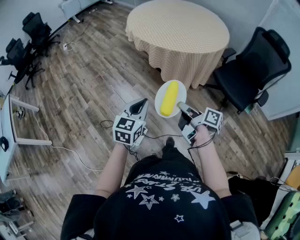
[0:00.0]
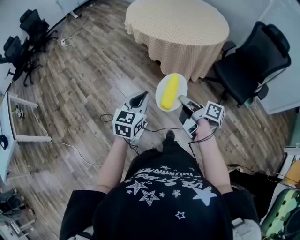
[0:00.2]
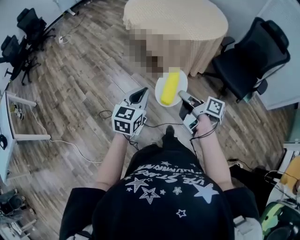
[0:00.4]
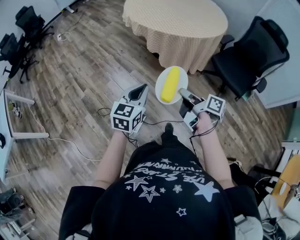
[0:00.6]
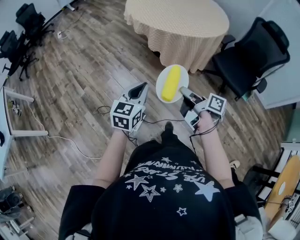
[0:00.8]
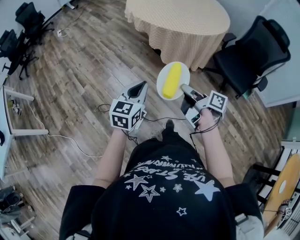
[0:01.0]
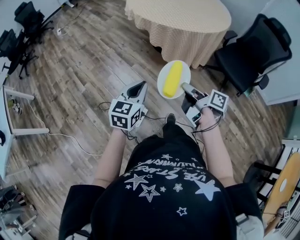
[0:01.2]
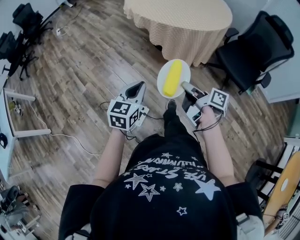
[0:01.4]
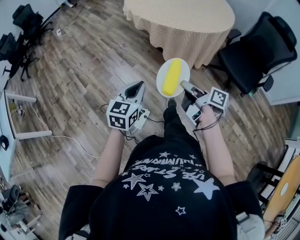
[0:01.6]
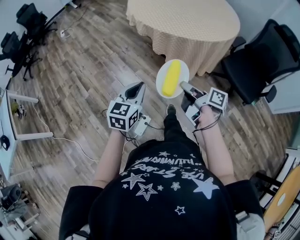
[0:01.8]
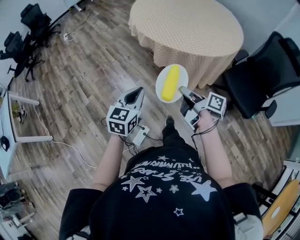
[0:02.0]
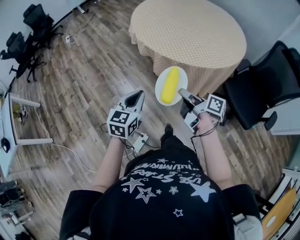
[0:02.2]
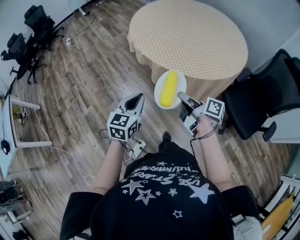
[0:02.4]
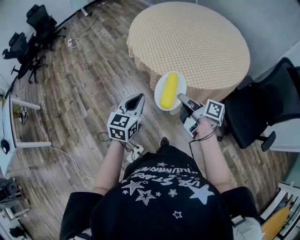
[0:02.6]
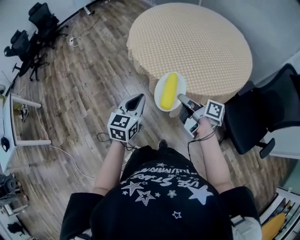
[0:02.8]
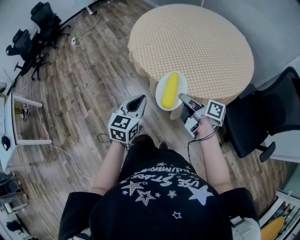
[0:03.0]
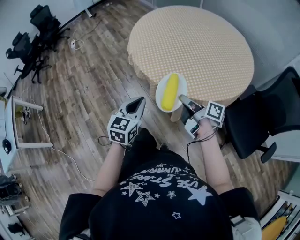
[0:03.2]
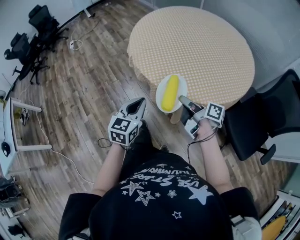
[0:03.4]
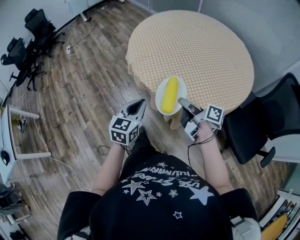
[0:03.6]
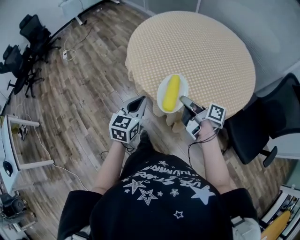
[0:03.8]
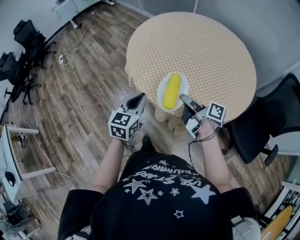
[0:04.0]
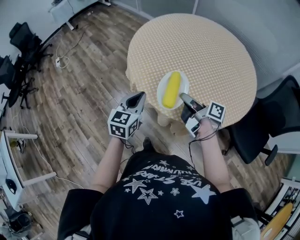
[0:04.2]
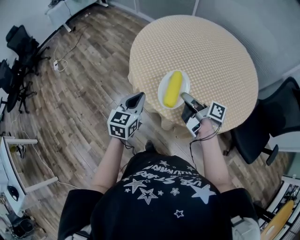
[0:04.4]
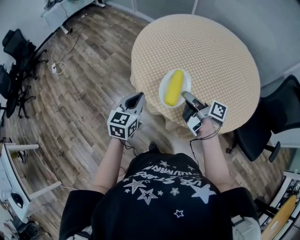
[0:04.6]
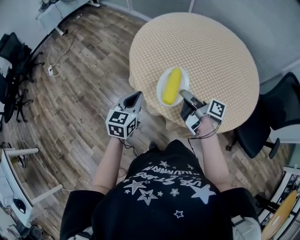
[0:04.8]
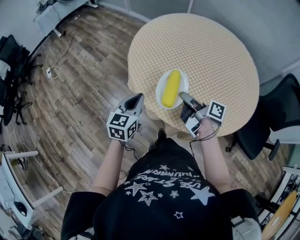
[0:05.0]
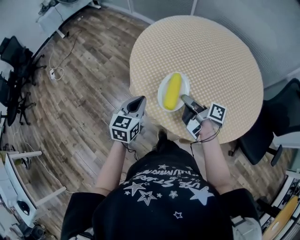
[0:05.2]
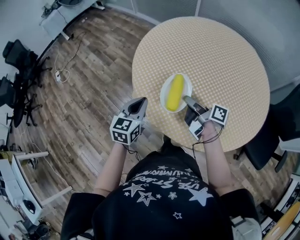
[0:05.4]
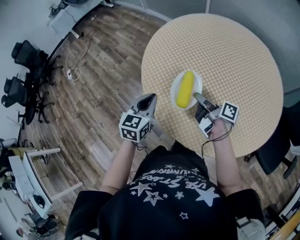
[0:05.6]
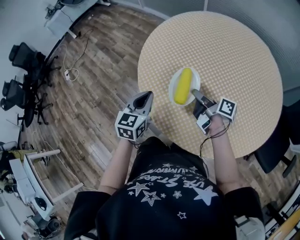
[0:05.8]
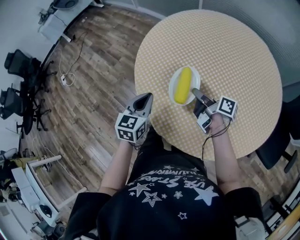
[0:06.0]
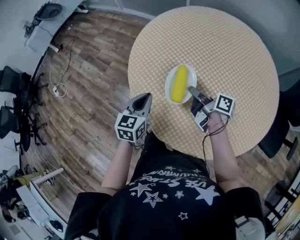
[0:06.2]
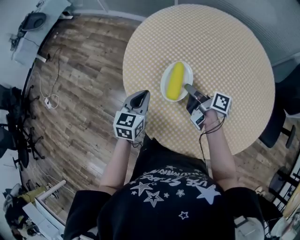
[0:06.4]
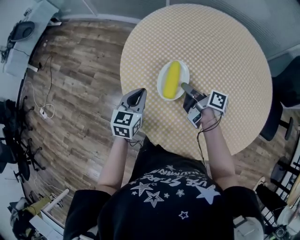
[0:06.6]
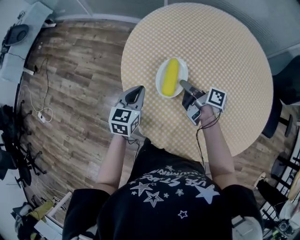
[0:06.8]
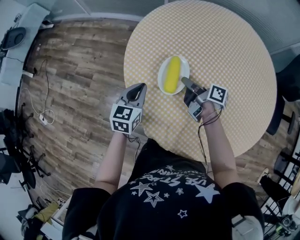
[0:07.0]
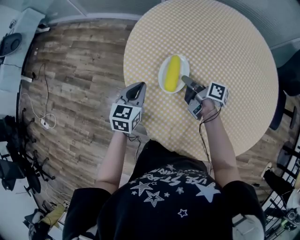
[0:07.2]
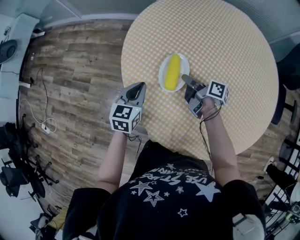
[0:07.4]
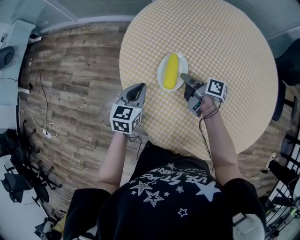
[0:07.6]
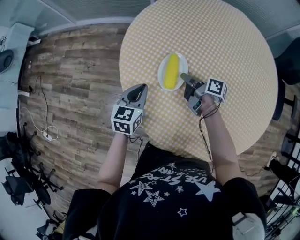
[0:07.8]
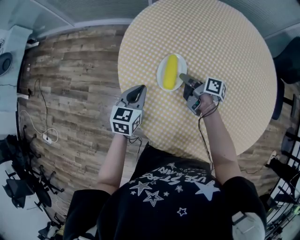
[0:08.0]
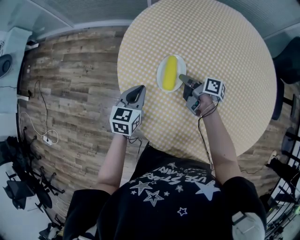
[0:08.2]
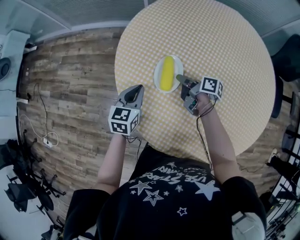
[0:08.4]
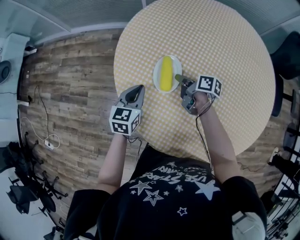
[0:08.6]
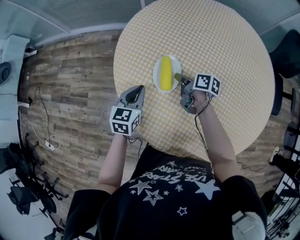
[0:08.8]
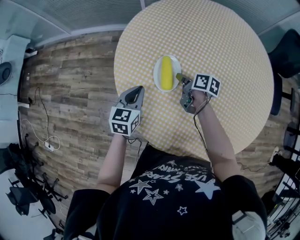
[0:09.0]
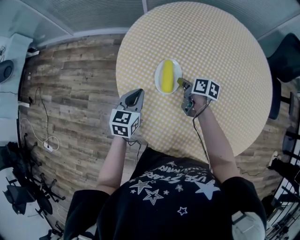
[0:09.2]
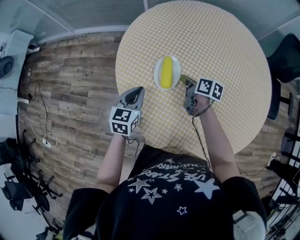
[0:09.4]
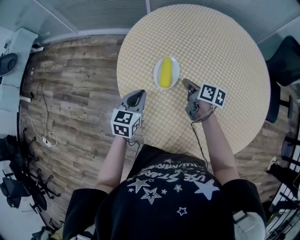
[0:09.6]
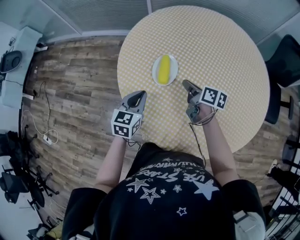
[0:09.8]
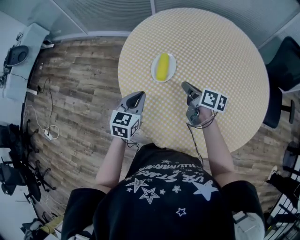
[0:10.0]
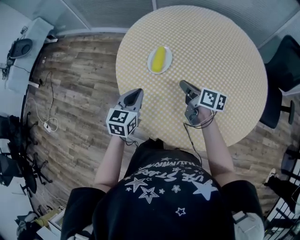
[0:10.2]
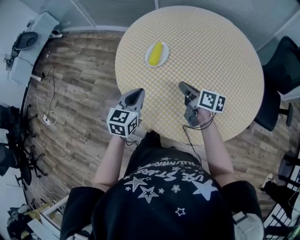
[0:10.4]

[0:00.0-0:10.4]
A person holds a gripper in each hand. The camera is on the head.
0:01.4 to 0:03.0: The left gripper changes place by about 35 cm.
0:03.0 to 0:04.4: The left gripper changes place by some 30 cm.
0:04.4 to 0:06.0: The left gripper changes place by about 20 cm.
0:06.0 to 0:07.4: The left gripper ends up about 25 cm from where it was, and changes its angle by about 30 degrees.
0:09.0 to 0:10.4: The left gripper changes place by some 25 cm.

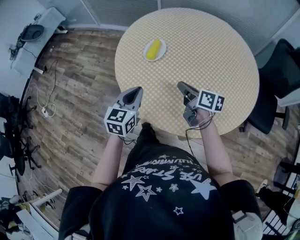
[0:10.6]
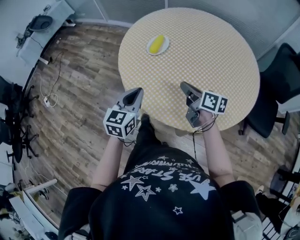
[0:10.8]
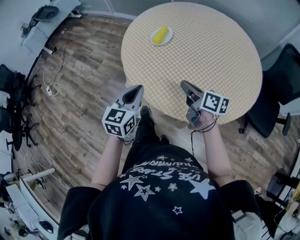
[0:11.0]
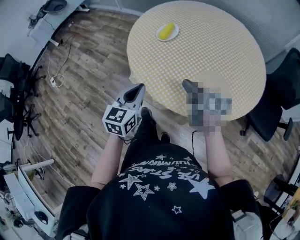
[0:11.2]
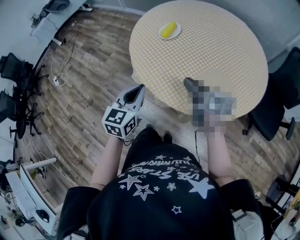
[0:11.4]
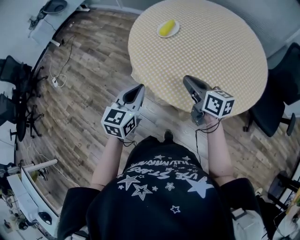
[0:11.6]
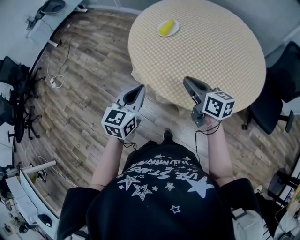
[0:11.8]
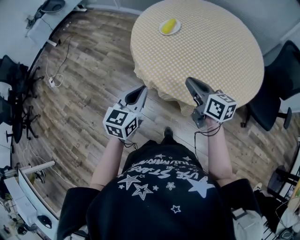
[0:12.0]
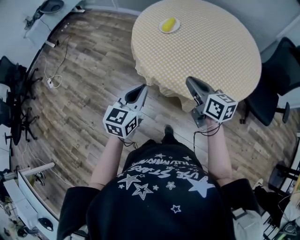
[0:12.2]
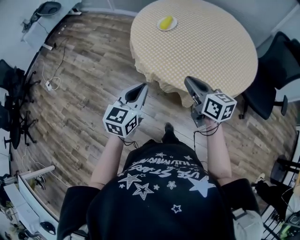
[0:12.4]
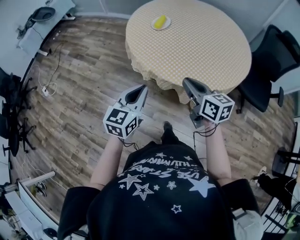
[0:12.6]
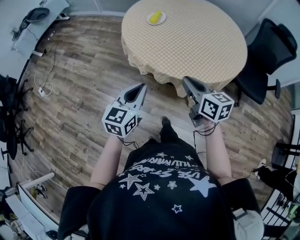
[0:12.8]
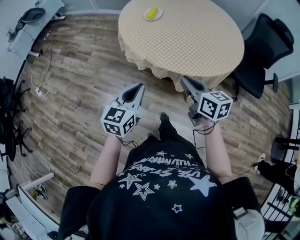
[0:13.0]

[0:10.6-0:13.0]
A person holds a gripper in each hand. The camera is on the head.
0:10.6 to 0:11.8: The left gripper changes place by about 20 cm.
0:11.8 to 0:13.0: The left gripper changes place by roughly 15 cm.

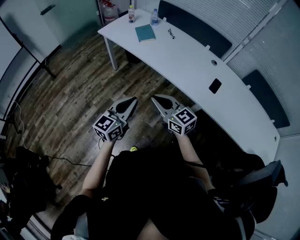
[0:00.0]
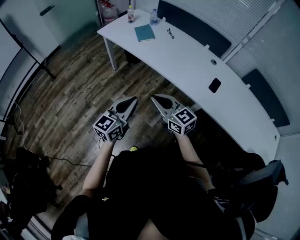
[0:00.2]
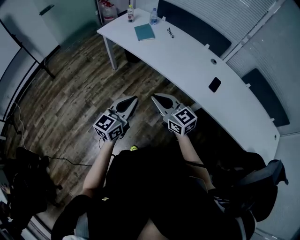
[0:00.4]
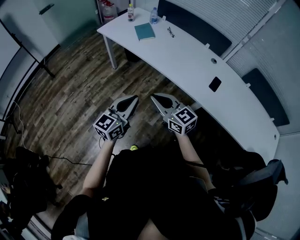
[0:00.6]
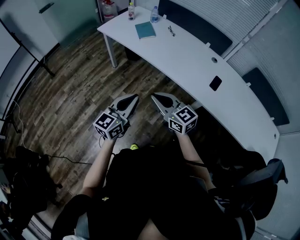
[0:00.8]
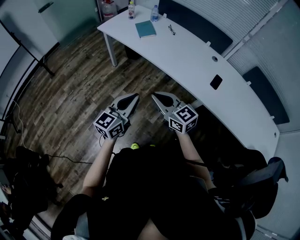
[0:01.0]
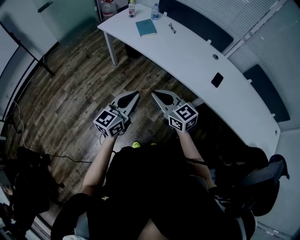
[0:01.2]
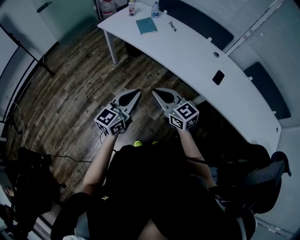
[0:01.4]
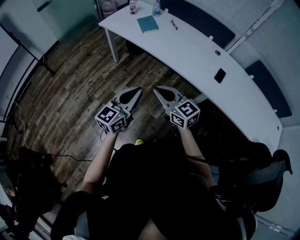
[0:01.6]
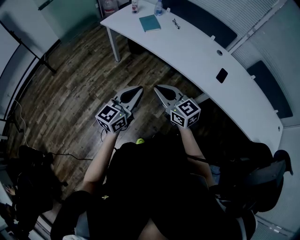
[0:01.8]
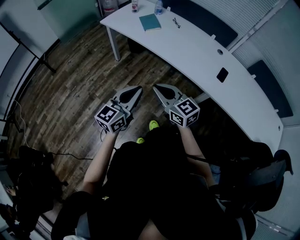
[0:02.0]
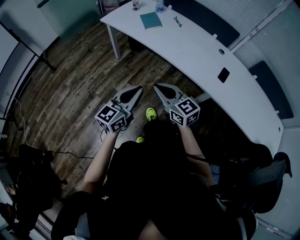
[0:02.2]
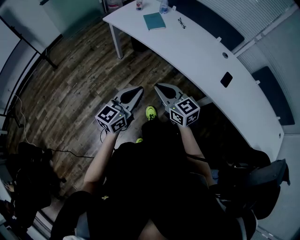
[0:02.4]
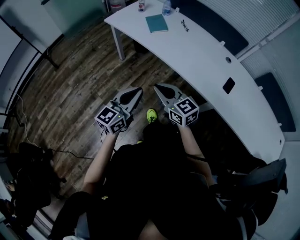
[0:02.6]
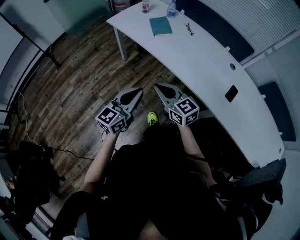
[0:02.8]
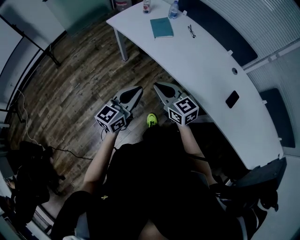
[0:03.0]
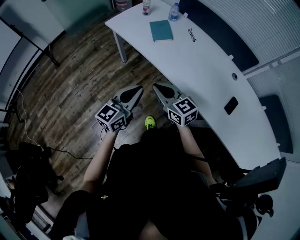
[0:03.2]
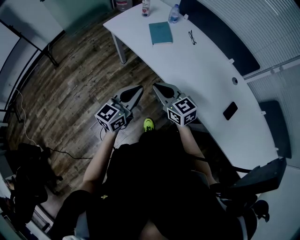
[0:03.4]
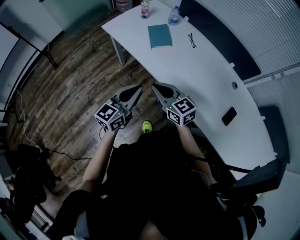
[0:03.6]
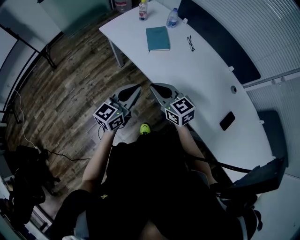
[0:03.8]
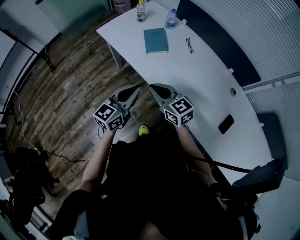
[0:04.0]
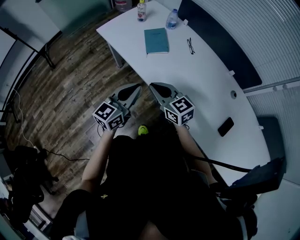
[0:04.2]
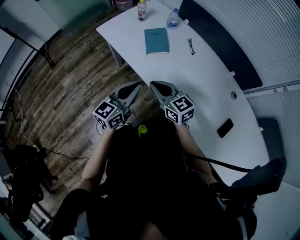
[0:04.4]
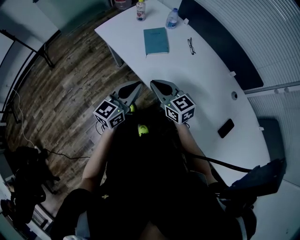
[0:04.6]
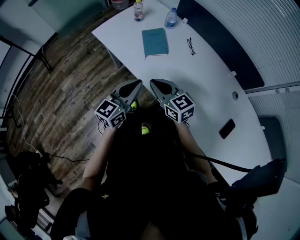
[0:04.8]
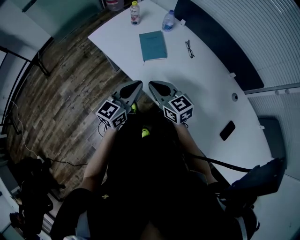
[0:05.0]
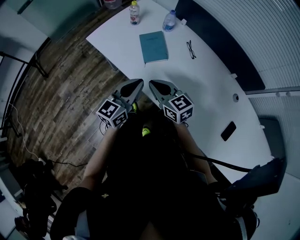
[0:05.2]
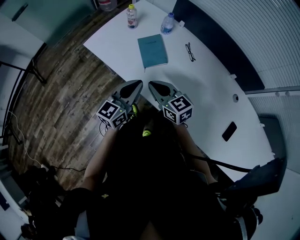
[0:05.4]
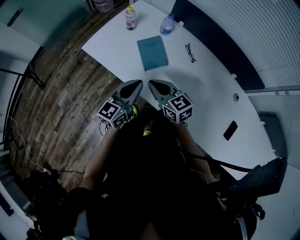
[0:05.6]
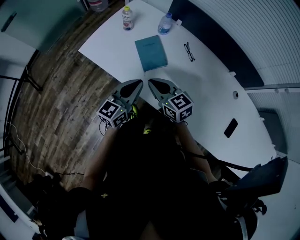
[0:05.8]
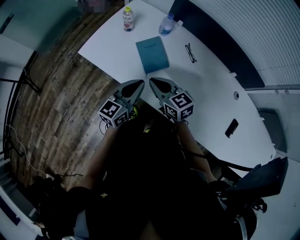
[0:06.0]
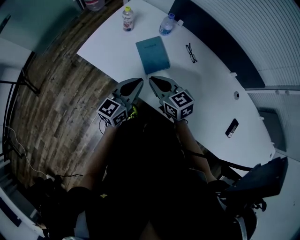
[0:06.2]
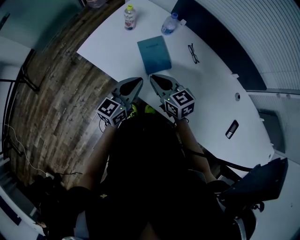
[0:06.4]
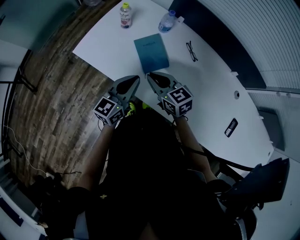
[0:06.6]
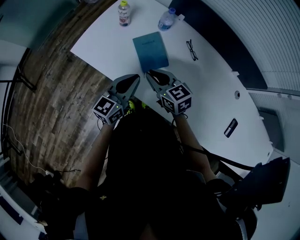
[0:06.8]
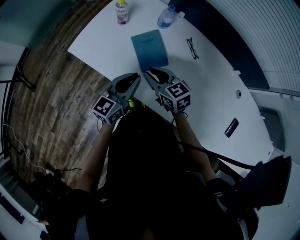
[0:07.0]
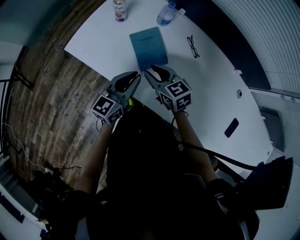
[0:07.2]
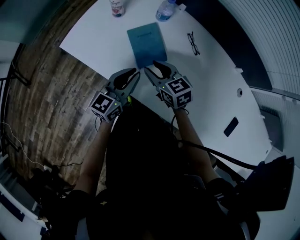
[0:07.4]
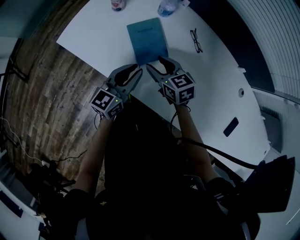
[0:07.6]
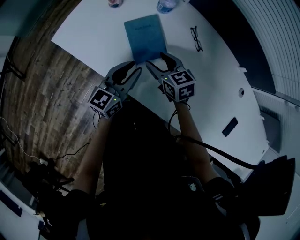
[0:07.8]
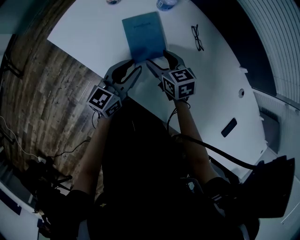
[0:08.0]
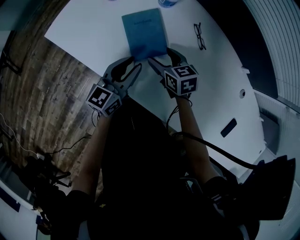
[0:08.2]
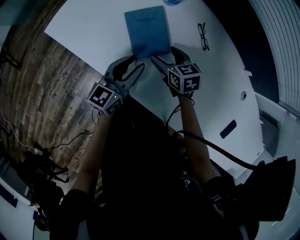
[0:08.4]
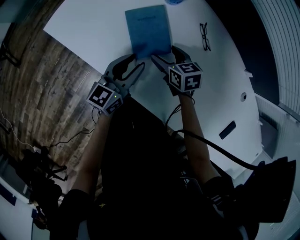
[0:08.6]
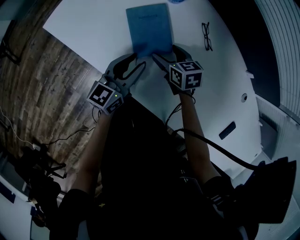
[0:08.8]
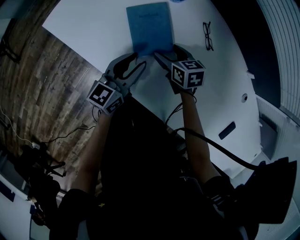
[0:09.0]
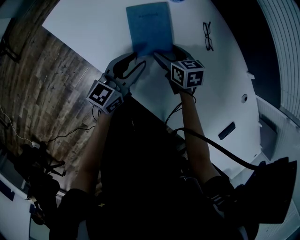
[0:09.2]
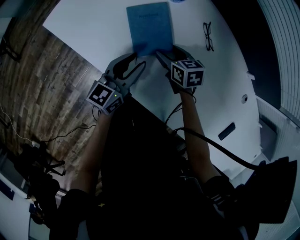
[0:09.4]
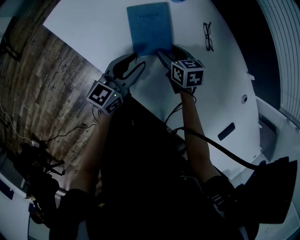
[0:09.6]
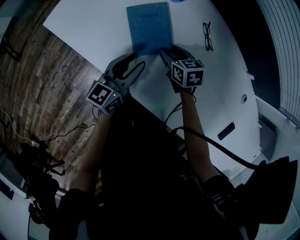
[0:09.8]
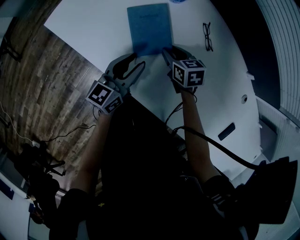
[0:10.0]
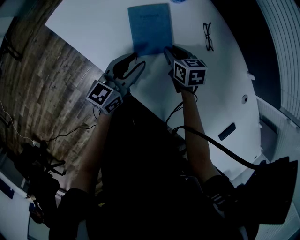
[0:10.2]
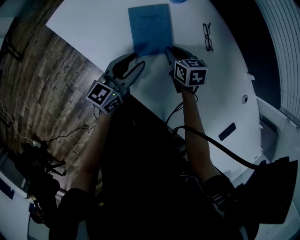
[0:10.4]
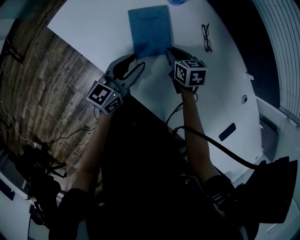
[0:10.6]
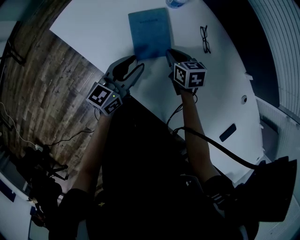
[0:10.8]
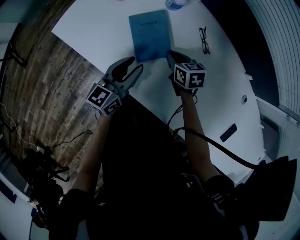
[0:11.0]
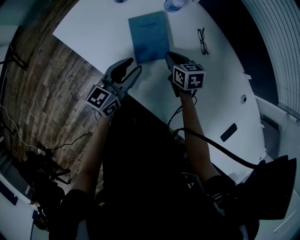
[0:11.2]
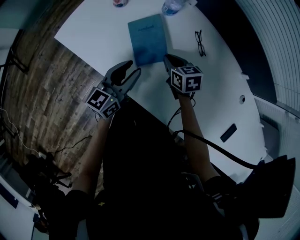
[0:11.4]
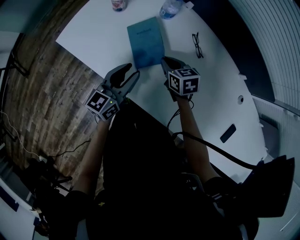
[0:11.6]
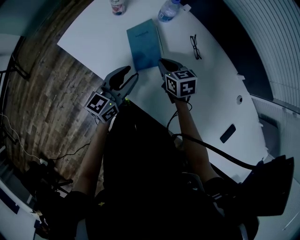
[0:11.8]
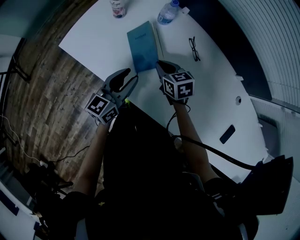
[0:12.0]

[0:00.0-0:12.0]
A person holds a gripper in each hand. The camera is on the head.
0:00.0 to 0:01.6: The grippers make only small movements.
0:01.6 to 0:03.0: Both grippers move forward, some 15 cm.
0:03.0 to 0:04.4: The grippers both shift forward by roughly 20 cm.
0:04.4 to 0:06.0: Both grippers move forward, some 20 cm.
0:06.0 to 0:07.6: The two grippers go roughly 15 cm downward and forward. The right gripper opens its fingers.
0:07.6 to 0:09.0: The left gripper travels downward by roughly 5 cm. The right gripper travels downward and to the right by roughly 10 cm, and opens up.
0:09.0 to 0:10.4: The right gripper closes its fingers.
0:10.4 to 0:12.0: Both grippers travel together upward, about 5 cm.
